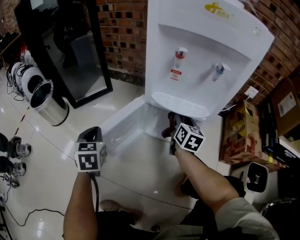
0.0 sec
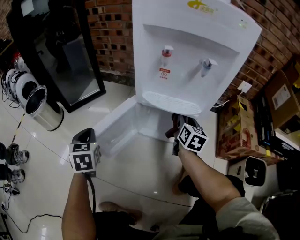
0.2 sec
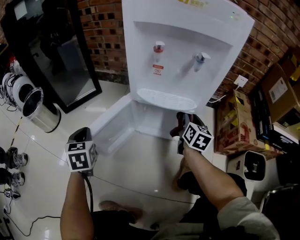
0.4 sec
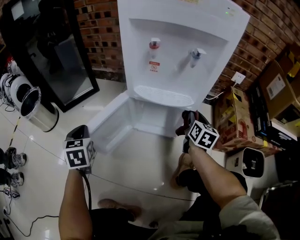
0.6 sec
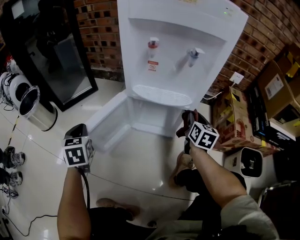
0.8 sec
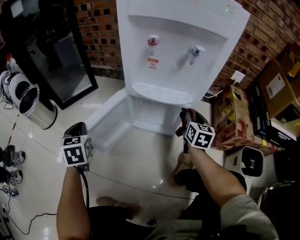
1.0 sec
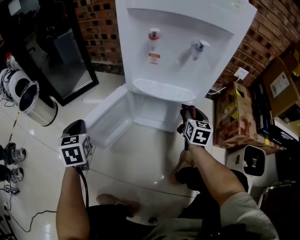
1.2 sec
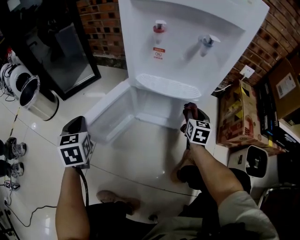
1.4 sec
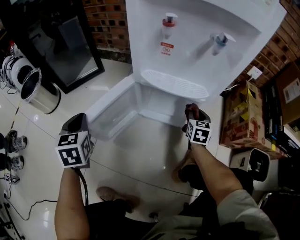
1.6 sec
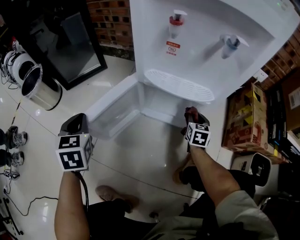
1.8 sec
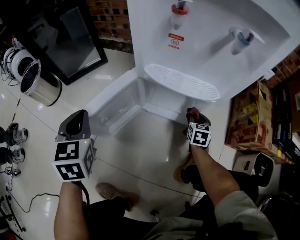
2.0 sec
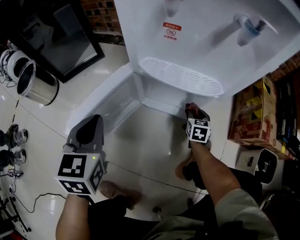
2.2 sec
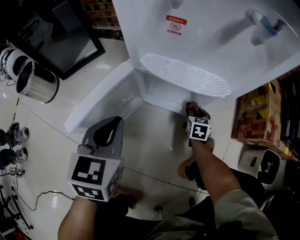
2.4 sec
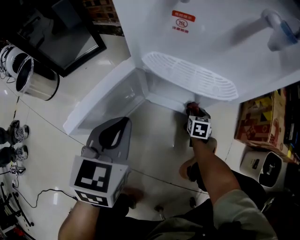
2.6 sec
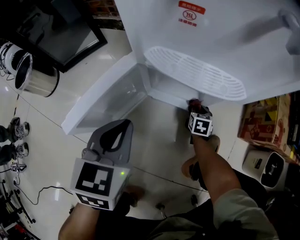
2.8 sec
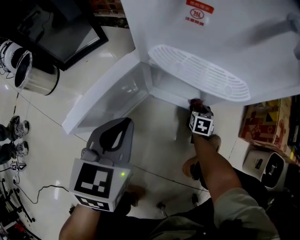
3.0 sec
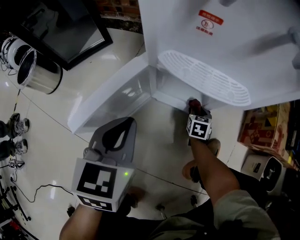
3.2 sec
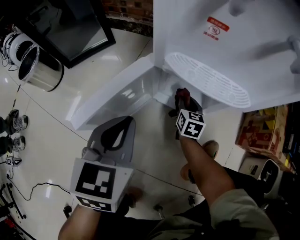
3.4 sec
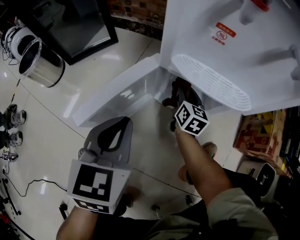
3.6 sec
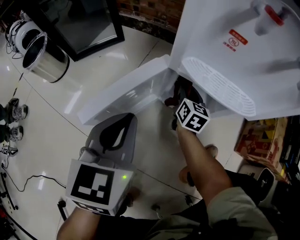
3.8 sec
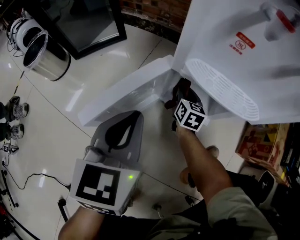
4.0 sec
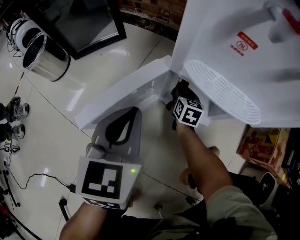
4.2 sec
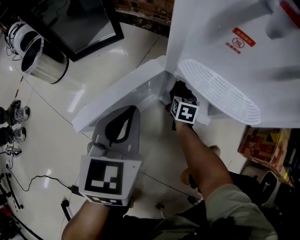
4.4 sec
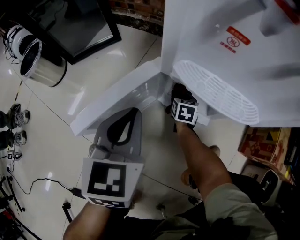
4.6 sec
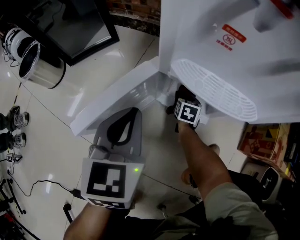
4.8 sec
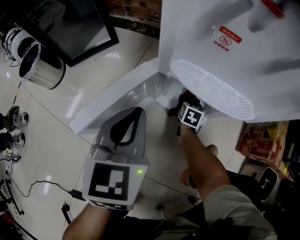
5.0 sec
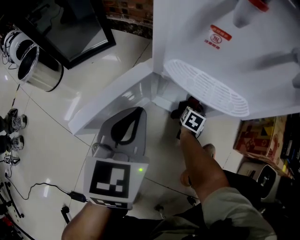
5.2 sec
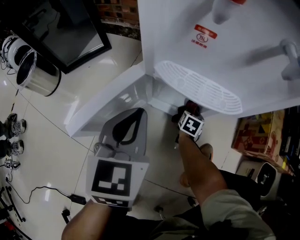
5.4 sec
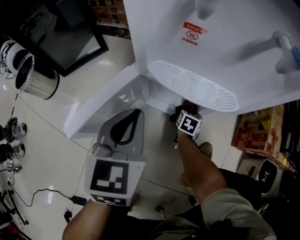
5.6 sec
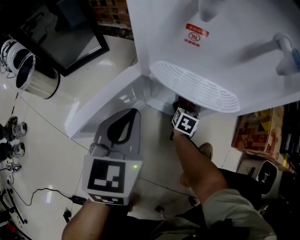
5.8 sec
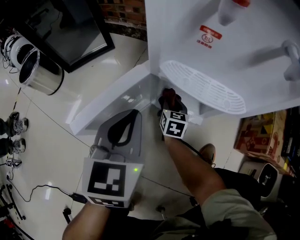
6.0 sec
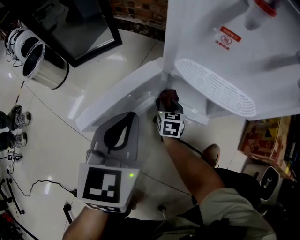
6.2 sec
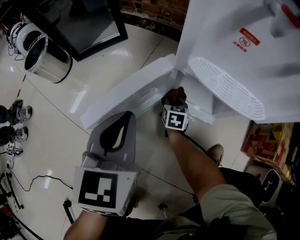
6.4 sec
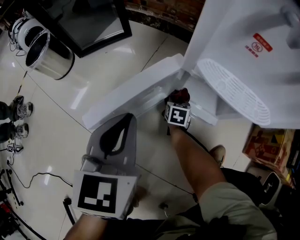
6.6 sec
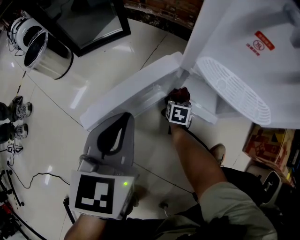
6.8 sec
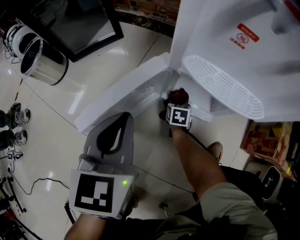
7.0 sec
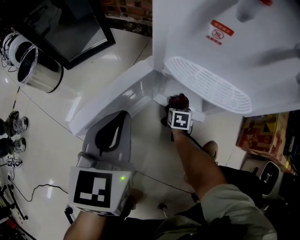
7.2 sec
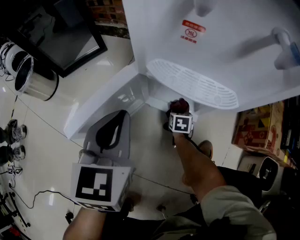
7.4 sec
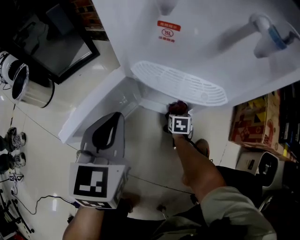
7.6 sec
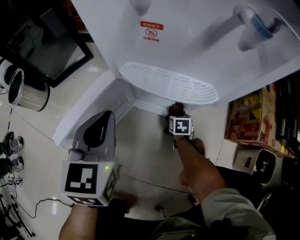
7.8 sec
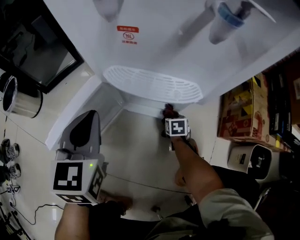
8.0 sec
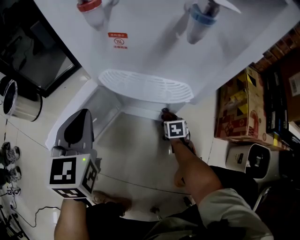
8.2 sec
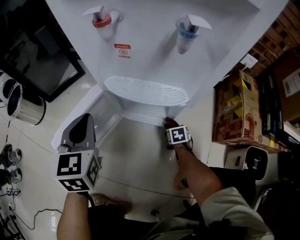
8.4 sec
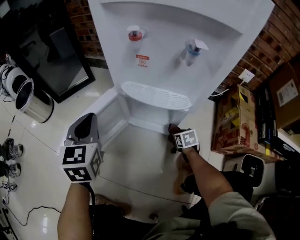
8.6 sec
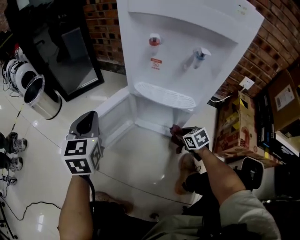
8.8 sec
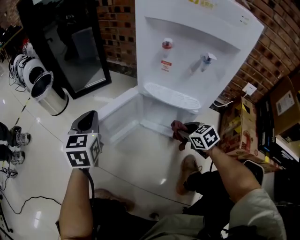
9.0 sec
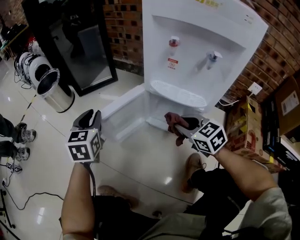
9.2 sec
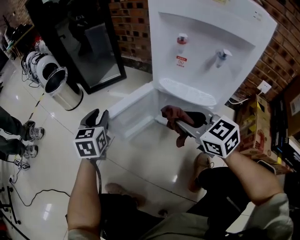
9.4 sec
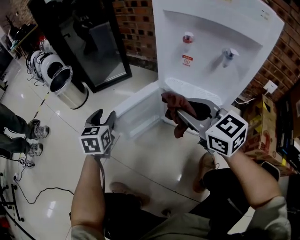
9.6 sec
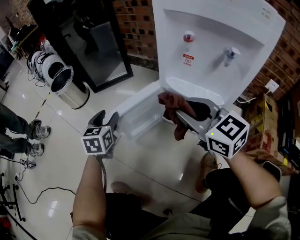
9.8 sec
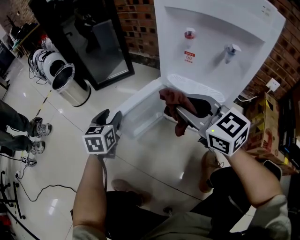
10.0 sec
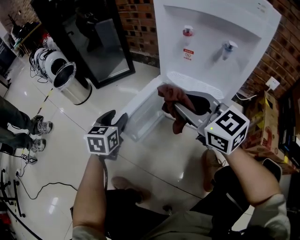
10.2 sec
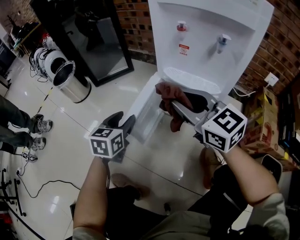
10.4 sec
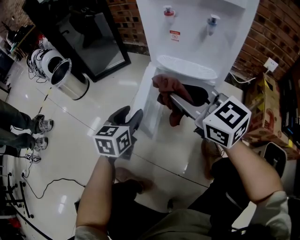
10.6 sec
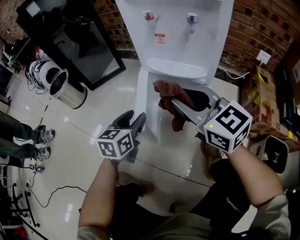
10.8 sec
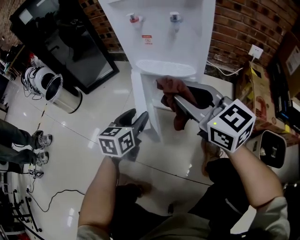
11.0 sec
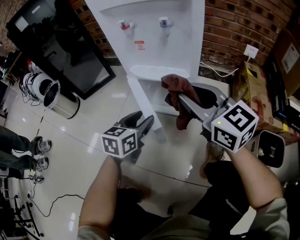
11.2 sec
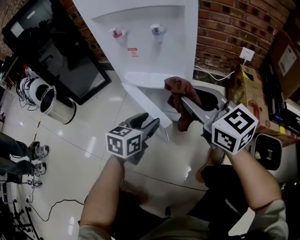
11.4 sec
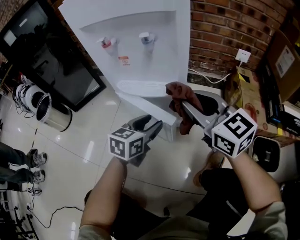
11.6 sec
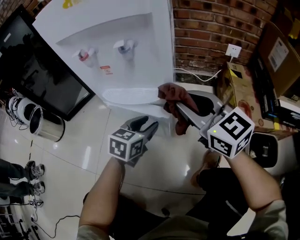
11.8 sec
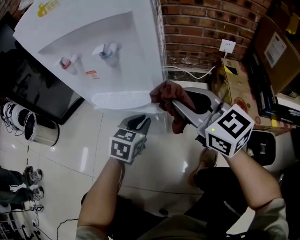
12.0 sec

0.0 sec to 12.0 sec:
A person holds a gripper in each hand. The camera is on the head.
0.0 sec to 1.6 sec: The right gripper moves to the right and downward, about 15 cm, and changes its angle by approximately 30 degrees.
1.6 sec to 3.0 sec: The right gripper is displaced downward by some 20 cm, and swivels about 20 degrees. The left gripper heads to the right, covering roughly 15 cm, and turns by about 20 degrees.
3.0 sec to 4.4 sec: The right gripper is displaced to the left and forward by some 20 cm, while the left gripper moves roughly 5 cm.
4.4 sec to 6.0 sec: The right gripper moves about 15 cm to the right and comes back.
6.0 sec to 7.6 sec: The right gripper goes about 15 cm to the right and downward, and turns by some 20 degrees; the left gripper goes to the left and returns, roughly 5 cm each way.
7.6 sec to 9.0 sec: The right gripper is displaced upward by approximately 25 cm, and turns by approximately 40 degrees, while the left gripper shifts by roughly 15 cm.
9.0 sec to 10.4 sec: The left gripper is displaced downward and backward by some 10 cm, and opens its fingers; the right gripper shifts roughly 30 cm upward and to the left, and tilts its fingers some 40 degrees upward.
10.4 sec to 12.0 sec: The right gripper shifts by about 25 cm, and swivels approximately 20 degrees. Meanwhile the left gripper moves some 30 cm, rotates approximately 30 degrees, and closes.

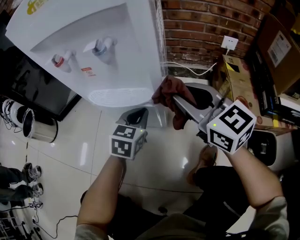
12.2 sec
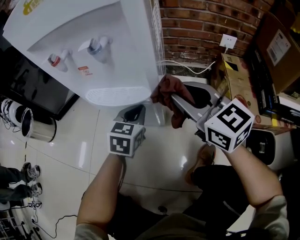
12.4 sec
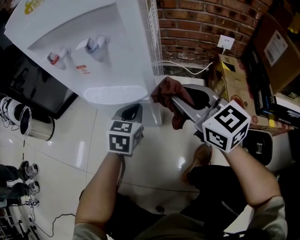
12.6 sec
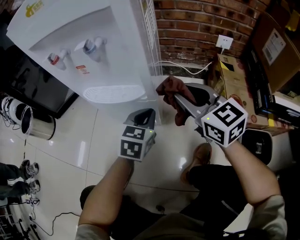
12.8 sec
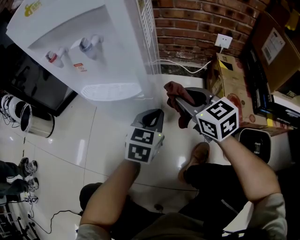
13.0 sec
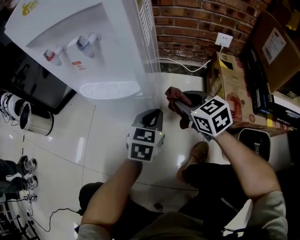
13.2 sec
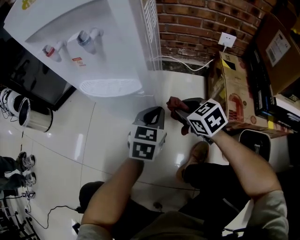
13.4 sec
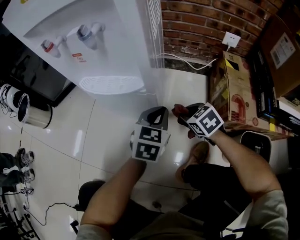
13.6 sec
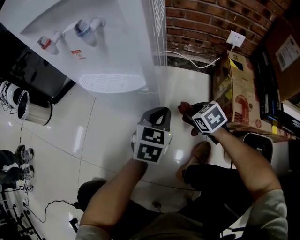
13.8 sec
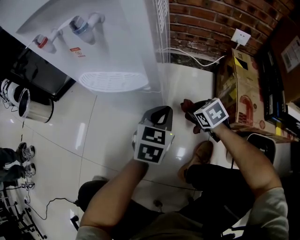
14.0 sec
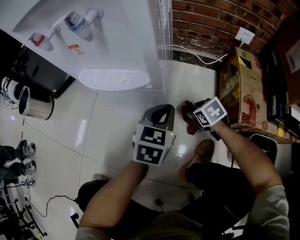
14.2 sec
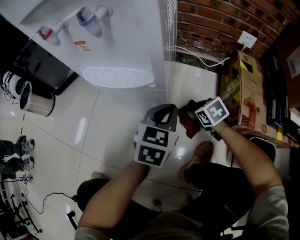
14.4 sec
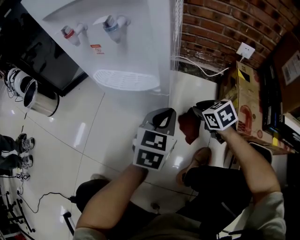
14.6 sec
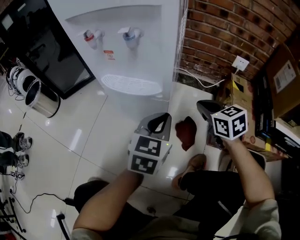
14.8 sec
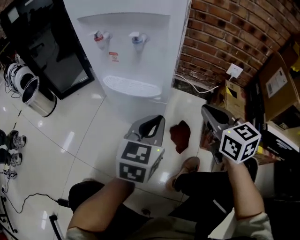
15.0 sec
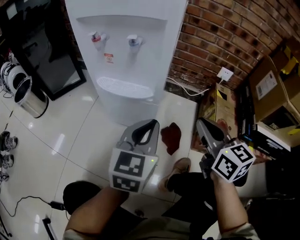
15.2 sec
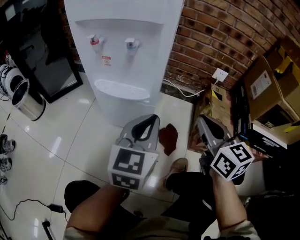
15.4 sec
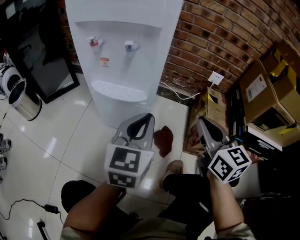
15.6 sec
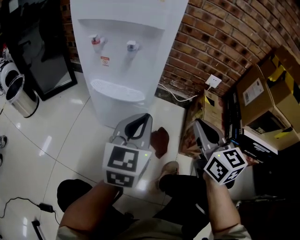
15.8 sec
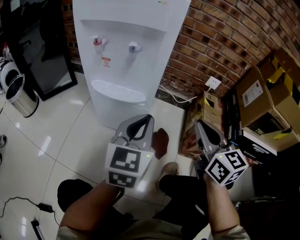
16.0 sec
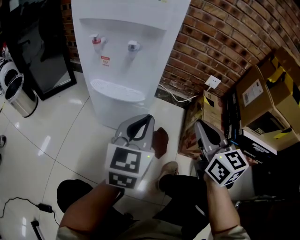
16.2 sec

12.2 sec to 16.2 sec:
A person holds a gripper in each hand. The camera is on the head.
12.2 sec to 13.6 sec: The right gripper shifts about 25 cm downward, and tilts its fingers approximately 40 degrees downward. The left gripper heads to the right and backward, covering about 10 cm.
13.6 sec to 14.8 sec: The left gripper heads upward, covering some 10 cm. The right gripper moves upward, roughly 15 cm, and changes its angle by some 20 degrees.
14.8 sec to 16.2 sec: The left gripper travels upward by roughly 10 cm, while the right gripper moves upward and backward, about 20 cm, and rotates roughly 30 degrees.

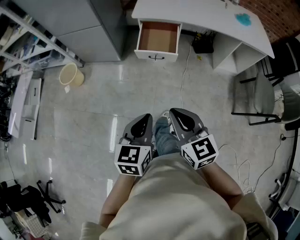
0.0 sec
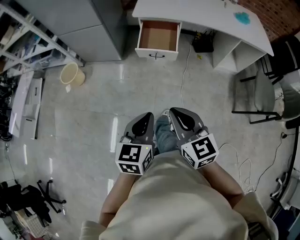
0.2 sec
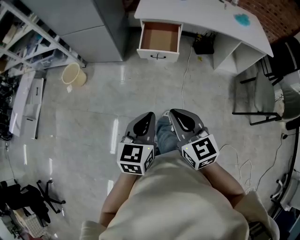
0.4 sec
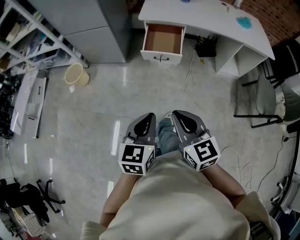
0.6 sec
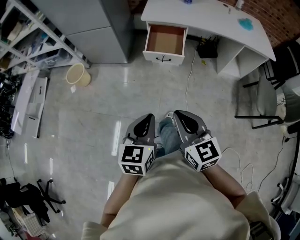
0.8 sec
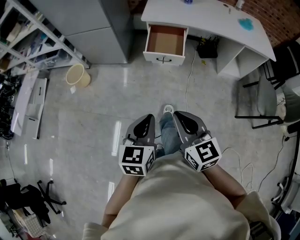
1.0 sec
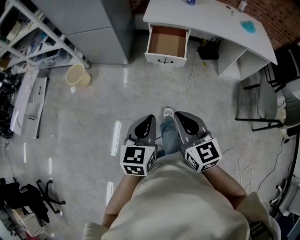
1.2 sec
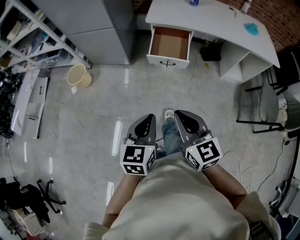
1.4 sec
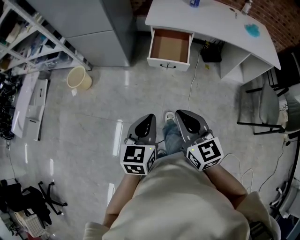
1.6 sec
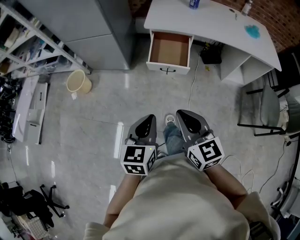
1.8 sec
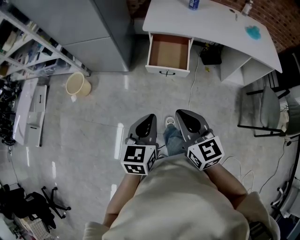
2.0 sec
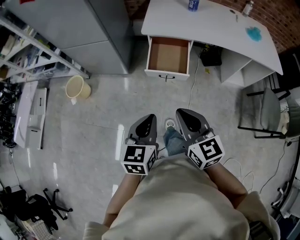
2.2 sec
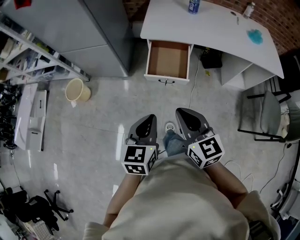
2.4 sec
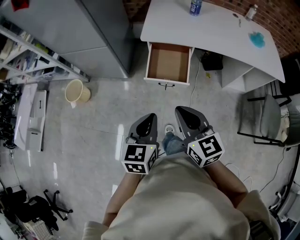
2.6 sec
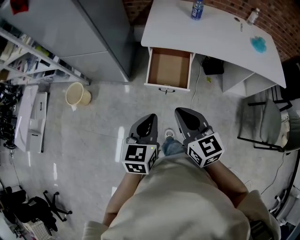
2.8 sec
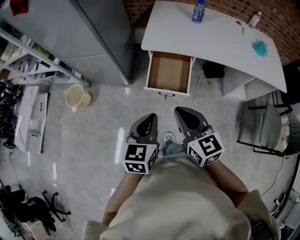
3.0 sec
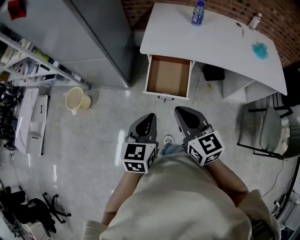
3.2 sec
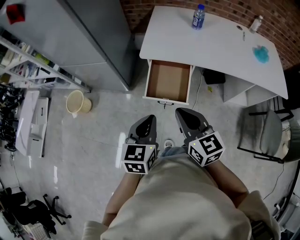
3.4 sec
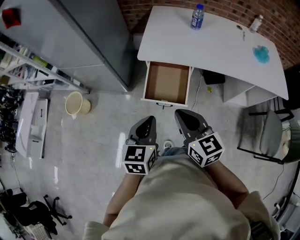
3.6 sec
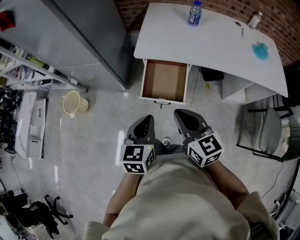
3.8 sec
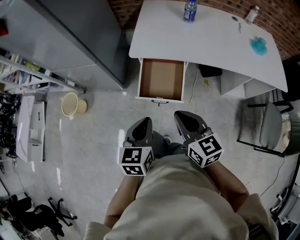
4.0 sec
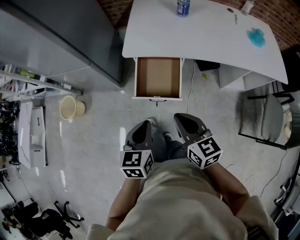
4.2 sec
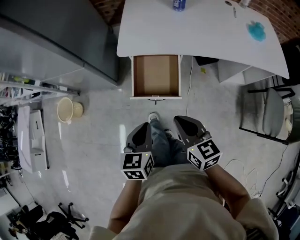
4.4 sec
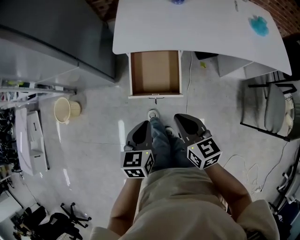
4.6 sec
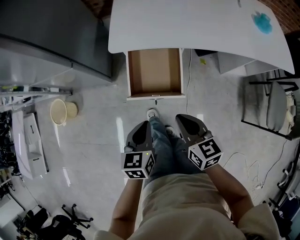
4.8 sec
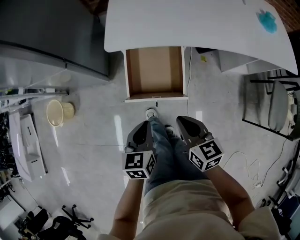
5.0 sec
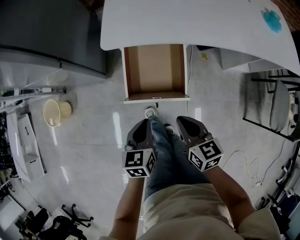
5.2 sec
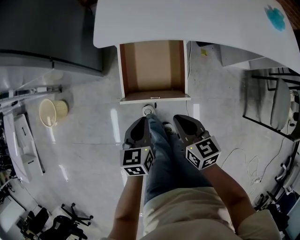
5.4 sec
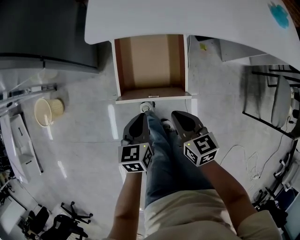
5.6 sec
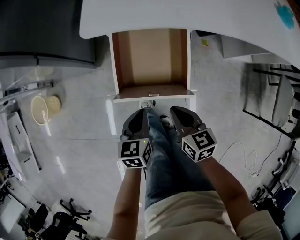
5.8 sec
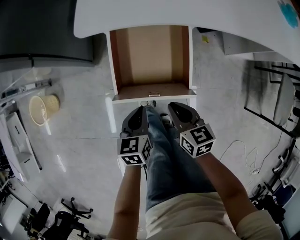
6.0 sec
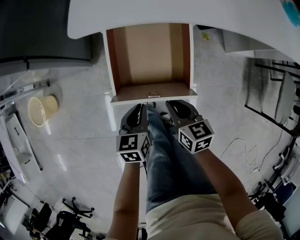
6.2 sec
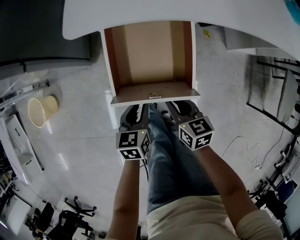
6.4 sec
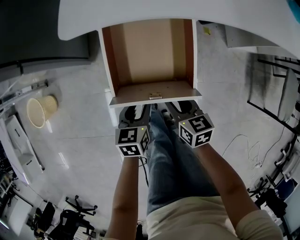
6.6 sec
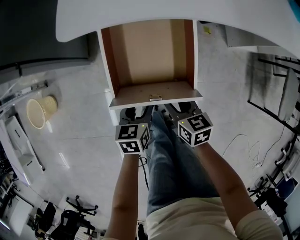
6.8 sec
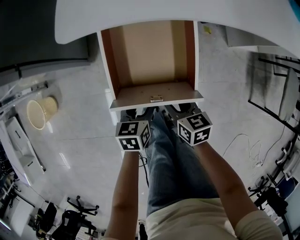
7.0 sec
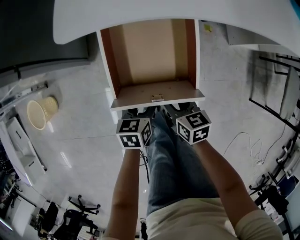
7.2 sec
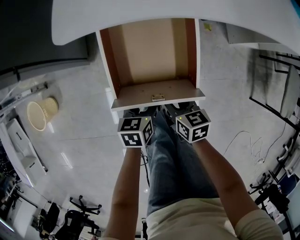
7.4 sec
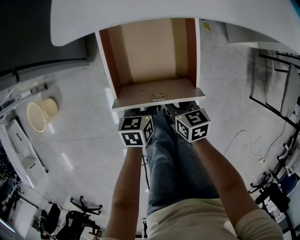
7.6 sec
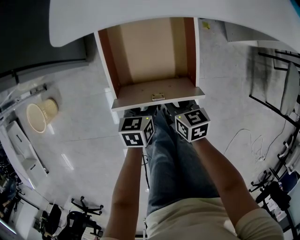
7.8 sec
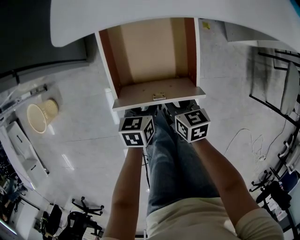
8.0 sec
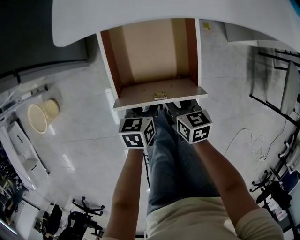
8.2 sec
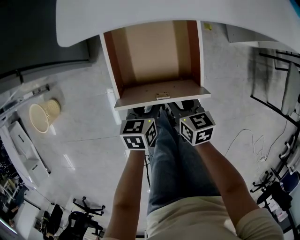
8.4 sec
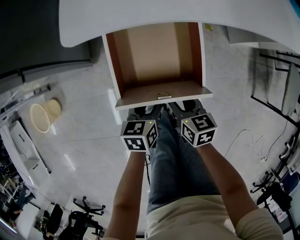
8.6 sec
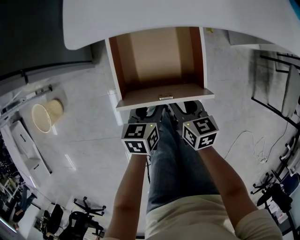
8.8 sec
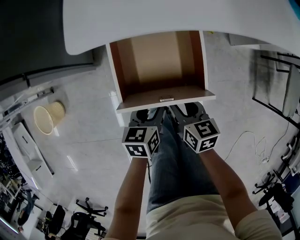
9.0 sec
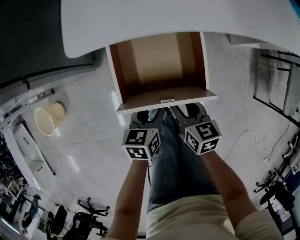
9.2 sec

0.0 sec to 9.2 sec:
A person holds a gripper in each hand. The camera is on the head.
0.0 sec to 1.6 sec: The left gripper moves about 5 cm. The right gripper shifts by about 5 cm.
1.6 sec to 3.0 sec: The two grippers go approximately 25 cm forward.
3.0 sec to 4.6 sec: The right gripper travels downward, forward and to the right by some 15 cm. Meanwhile the left gripper goes about 15 cm downward and forward.
4.6 sec to 6.2 sec: The grippers both shift downward by some 25 cm.
6.2 sec to 7.6 sec: The two grippers go about 5 cm downward. The left gripper opens up, while the right gripper opens up.
7.6 sec to 9.2 sec: The two grippers go about 5 cm upward.
